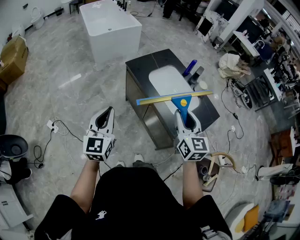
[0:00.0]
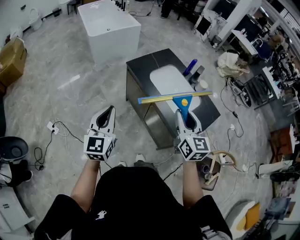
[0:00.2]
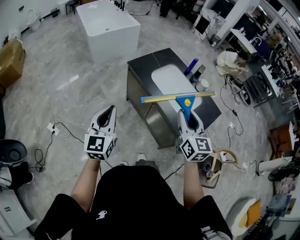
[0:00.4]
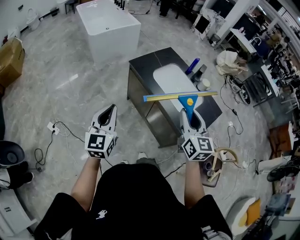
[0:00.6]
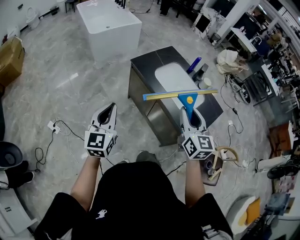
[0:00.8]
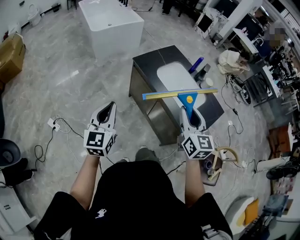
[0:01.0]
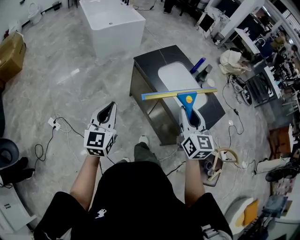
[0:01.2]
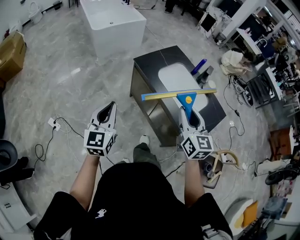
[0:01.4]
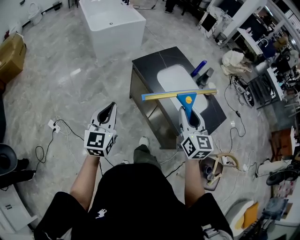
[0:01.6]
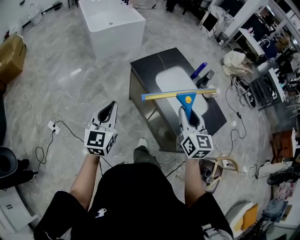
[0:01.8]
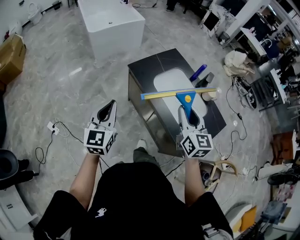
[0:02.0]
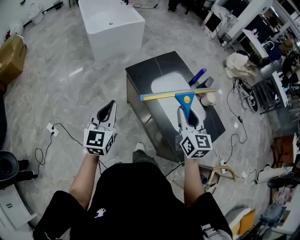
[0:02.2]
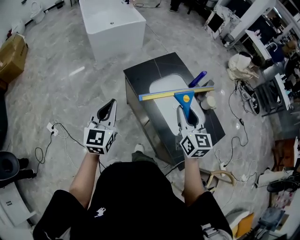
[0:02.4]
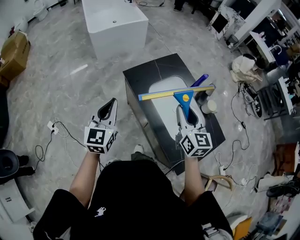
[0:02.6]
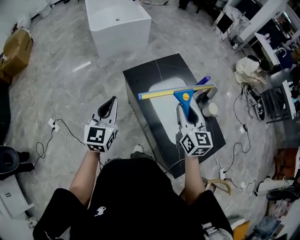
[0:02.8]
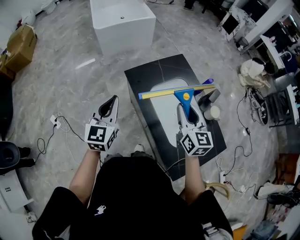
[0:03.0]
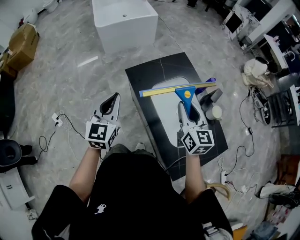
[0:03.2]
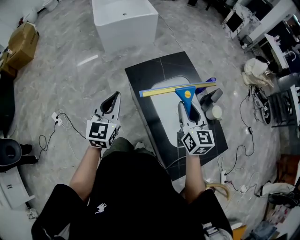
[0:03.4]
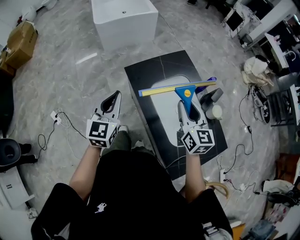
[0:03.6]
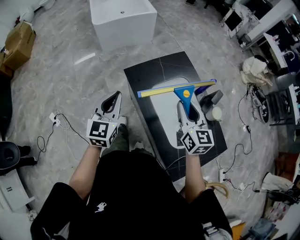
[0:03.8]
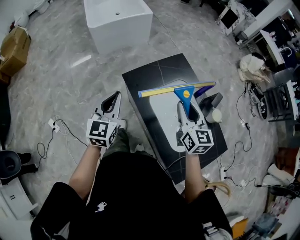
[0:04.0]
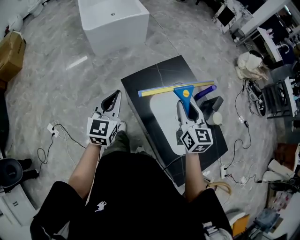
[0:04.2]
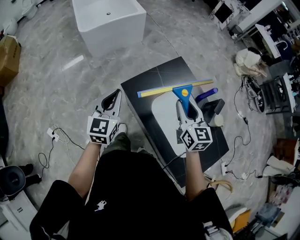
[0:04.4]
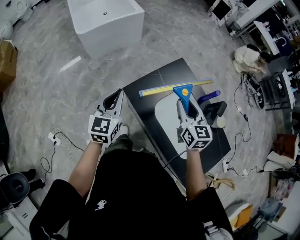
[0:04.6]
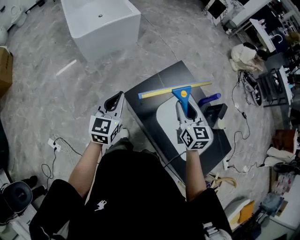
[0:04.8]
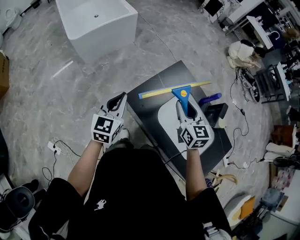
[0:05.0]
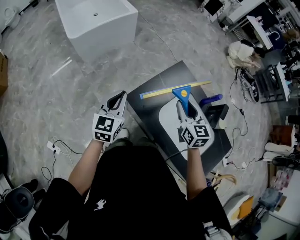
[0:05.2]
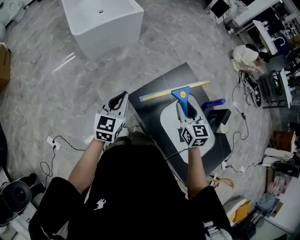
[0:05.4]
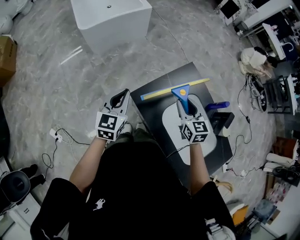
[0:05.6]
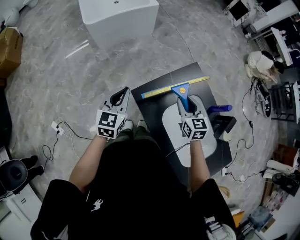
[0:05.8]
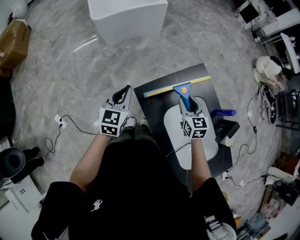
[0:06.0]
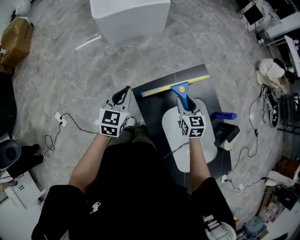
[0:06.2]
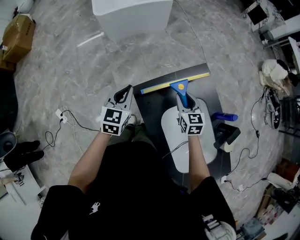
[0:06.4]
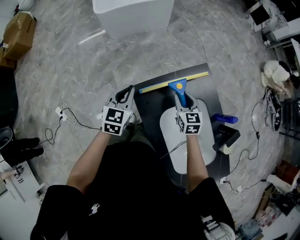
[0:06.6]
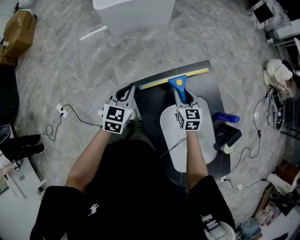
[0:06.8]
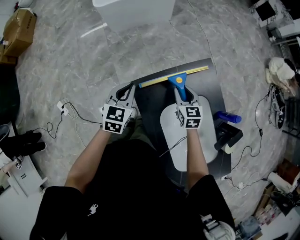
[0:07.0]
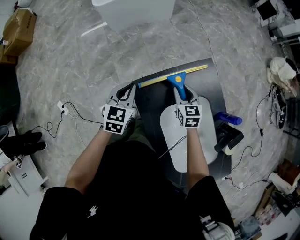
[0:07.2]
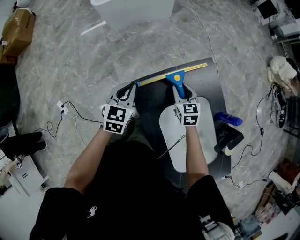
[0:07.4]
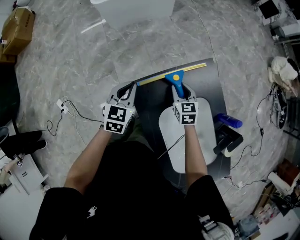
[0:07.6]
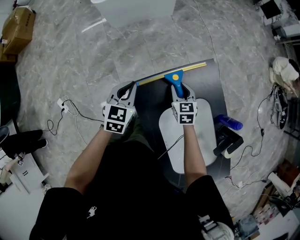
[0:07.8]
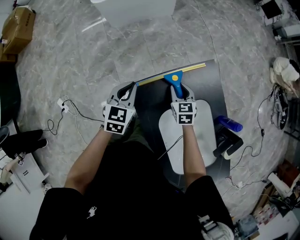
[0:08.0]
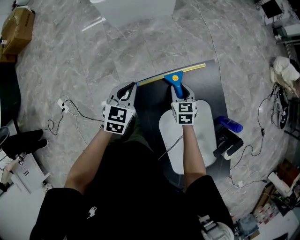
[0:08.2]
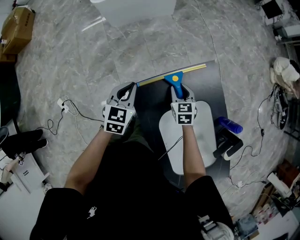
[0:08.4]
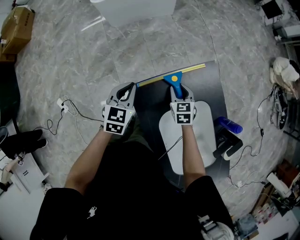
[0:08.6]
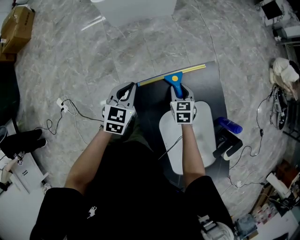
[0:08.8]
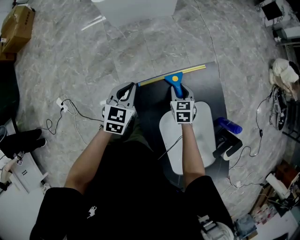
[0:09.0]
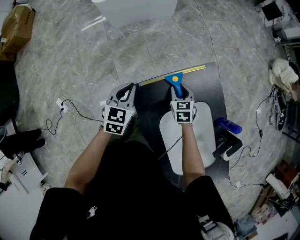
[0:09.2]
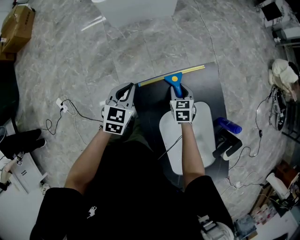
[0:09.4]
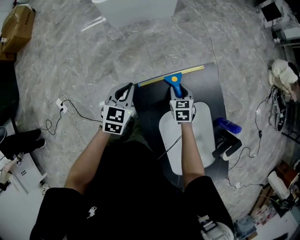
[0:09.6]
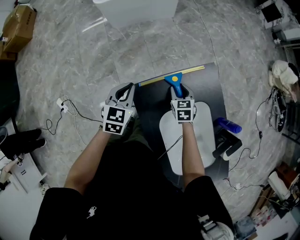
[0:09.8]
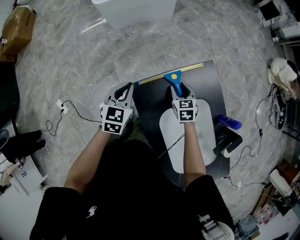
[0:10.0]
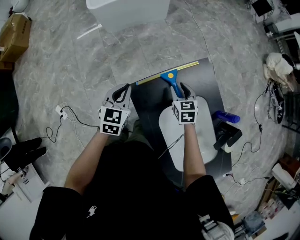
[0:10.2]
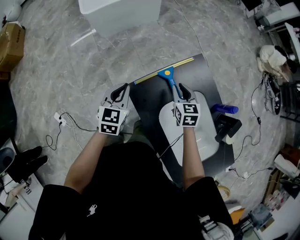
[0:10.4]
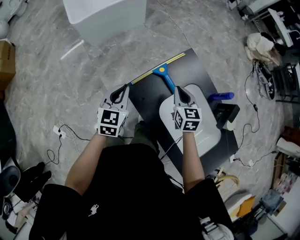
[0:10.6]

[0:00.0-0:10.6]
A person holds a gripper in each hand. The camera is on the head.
0:00.0 to 0:01.6: Both grippers move forward and to the left, about 10 cm.
0:01.6 to 0:03.0: Both grippers move forward and to the right, approximately 25 cm.
0:03.0 to 0:04.6: The grippers both shift forward by about 20 cm.
0:04.6 to 0:06.0: The left gripper heads downward and forward, covering approximately 10 cm; the right gripper moves downward and forward, about 15 cm.
0:06.0 to 0:07.6: The left gripper heads downward and to the right, covering approximately 10 cm, while the right gripper heads downward and forward, covering about 15 cm.
0:07.6 to 0:09.0: The grippers stay close to where they were, moving slightly.
0:09.0 to 0:10.6: The left gripper is displaced upward by about 5 cm; the right gripper is displaced upward and backward by roughly 15 cm, turns by about 20 degrees, and closes its fingers.

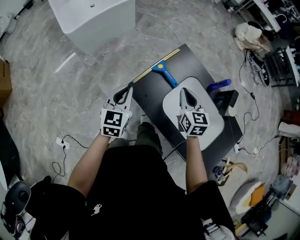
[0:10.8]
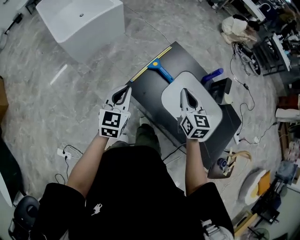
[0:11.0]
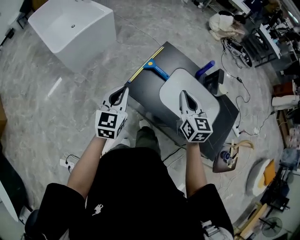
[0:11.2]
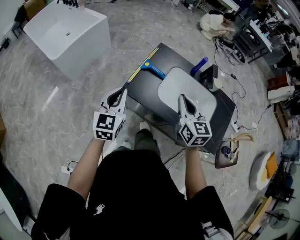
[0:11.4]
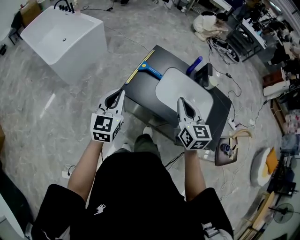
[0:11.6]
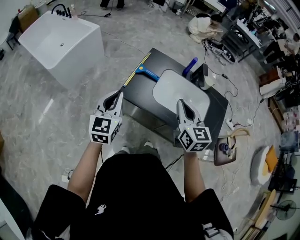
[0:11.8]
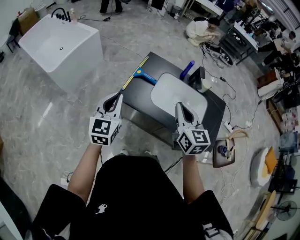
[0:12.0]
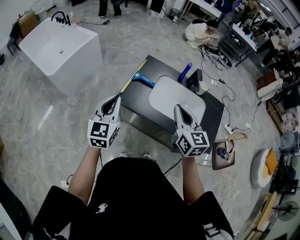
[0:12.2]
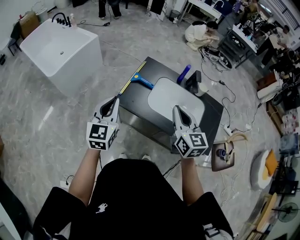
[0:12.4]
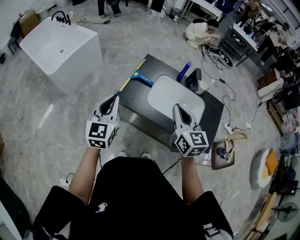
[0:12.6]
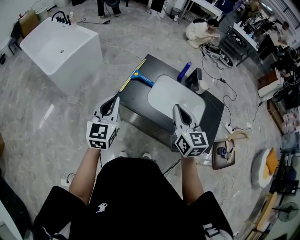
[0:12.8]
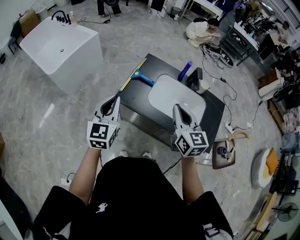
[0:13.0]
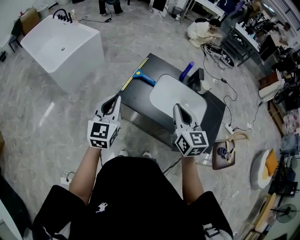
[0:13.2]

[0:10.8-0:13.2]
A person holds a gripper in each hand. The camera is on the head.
0:10.8 to 0:12.0: The left gripper shifts some 15 cm upward and backward, and swivels approximately 20 degrees, while the right gripper heads backward and upward, covering about 25 cm, and turns by approximately 20 degrees.
0:12.0 to 0:13.2: The grippers move only a little.

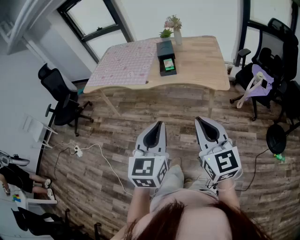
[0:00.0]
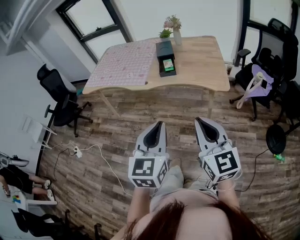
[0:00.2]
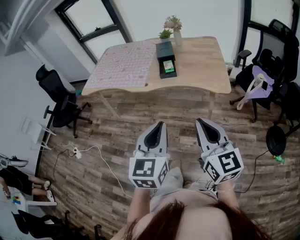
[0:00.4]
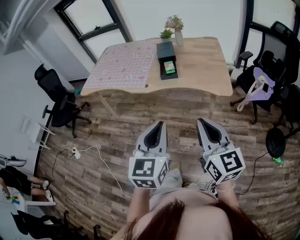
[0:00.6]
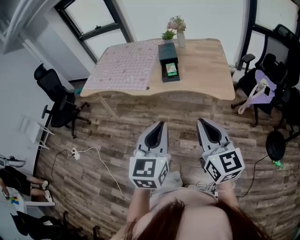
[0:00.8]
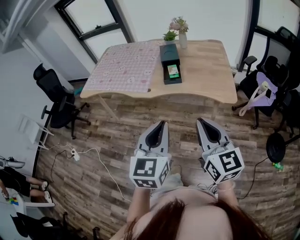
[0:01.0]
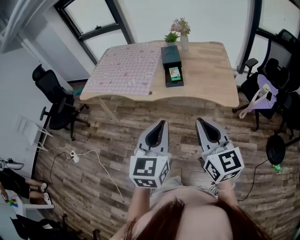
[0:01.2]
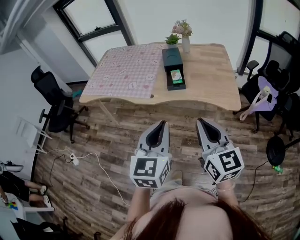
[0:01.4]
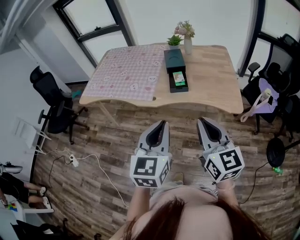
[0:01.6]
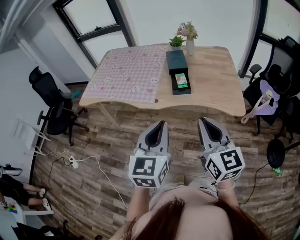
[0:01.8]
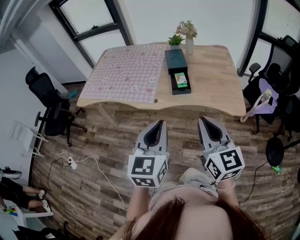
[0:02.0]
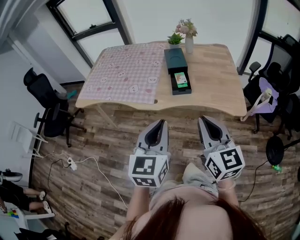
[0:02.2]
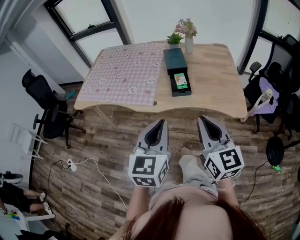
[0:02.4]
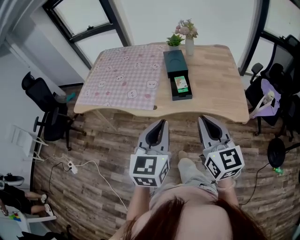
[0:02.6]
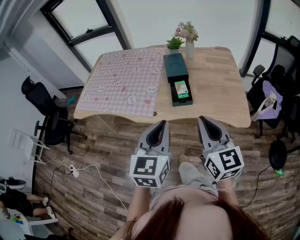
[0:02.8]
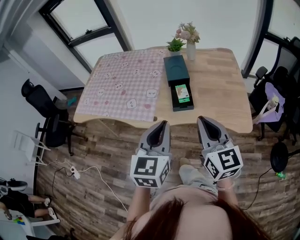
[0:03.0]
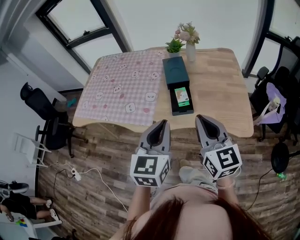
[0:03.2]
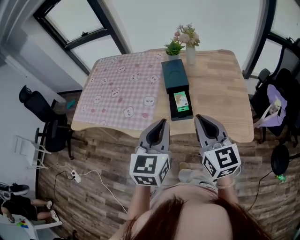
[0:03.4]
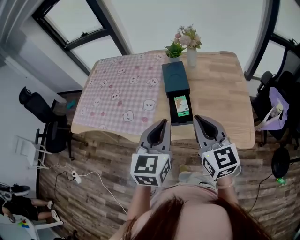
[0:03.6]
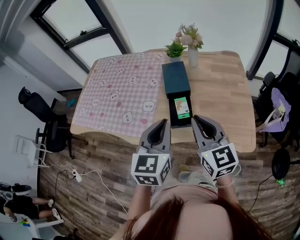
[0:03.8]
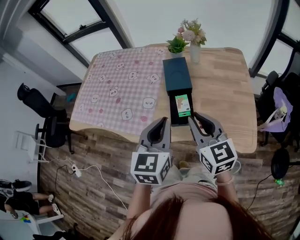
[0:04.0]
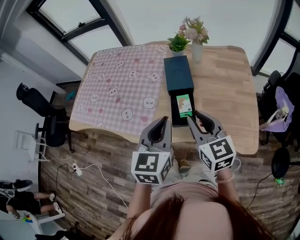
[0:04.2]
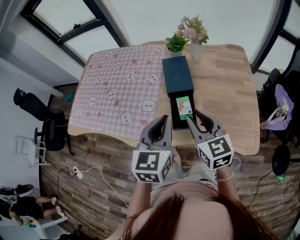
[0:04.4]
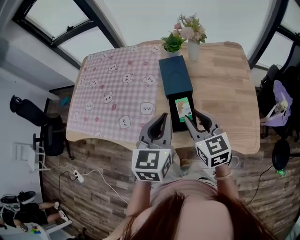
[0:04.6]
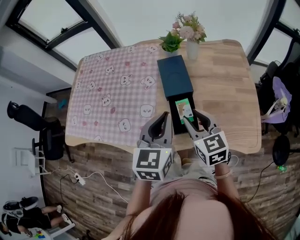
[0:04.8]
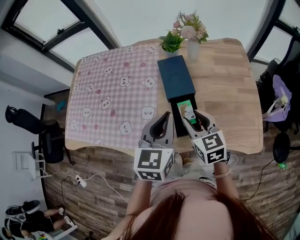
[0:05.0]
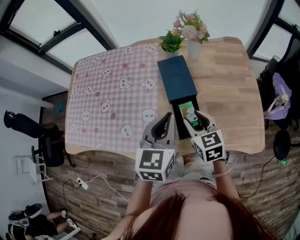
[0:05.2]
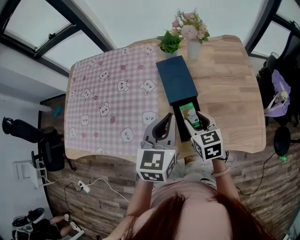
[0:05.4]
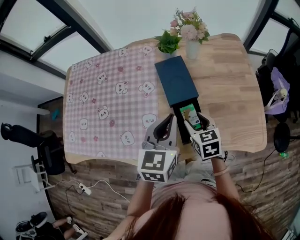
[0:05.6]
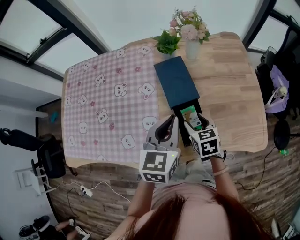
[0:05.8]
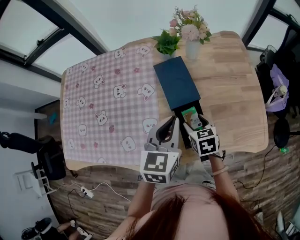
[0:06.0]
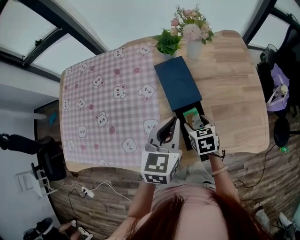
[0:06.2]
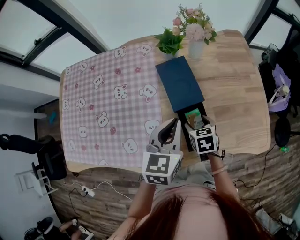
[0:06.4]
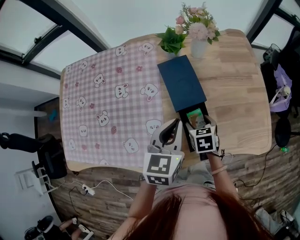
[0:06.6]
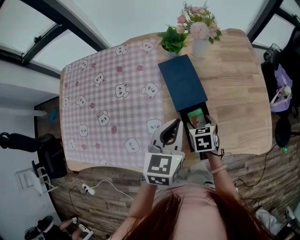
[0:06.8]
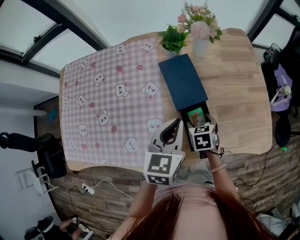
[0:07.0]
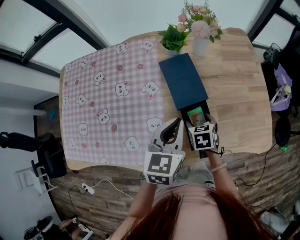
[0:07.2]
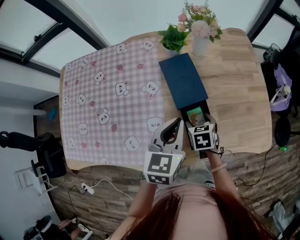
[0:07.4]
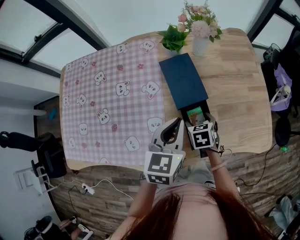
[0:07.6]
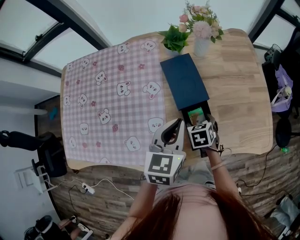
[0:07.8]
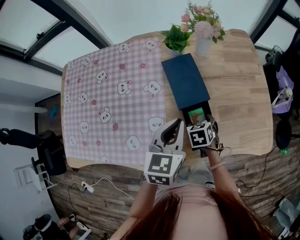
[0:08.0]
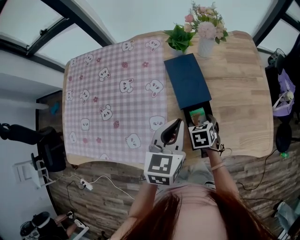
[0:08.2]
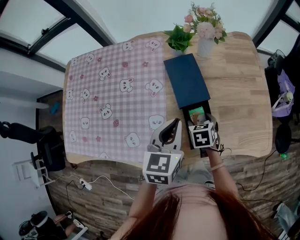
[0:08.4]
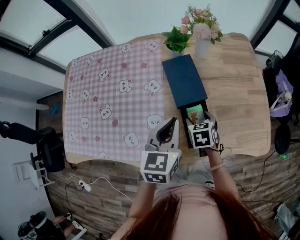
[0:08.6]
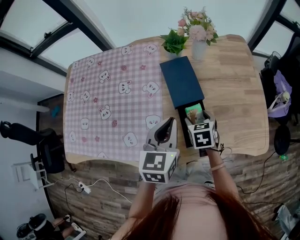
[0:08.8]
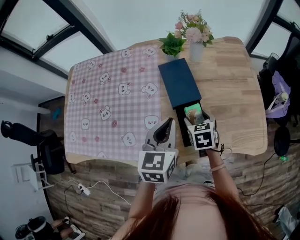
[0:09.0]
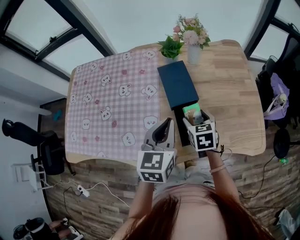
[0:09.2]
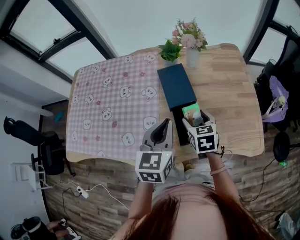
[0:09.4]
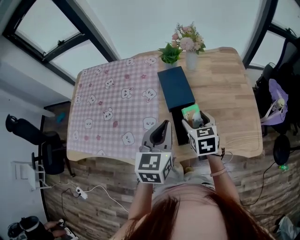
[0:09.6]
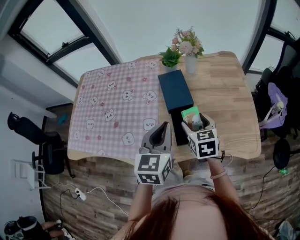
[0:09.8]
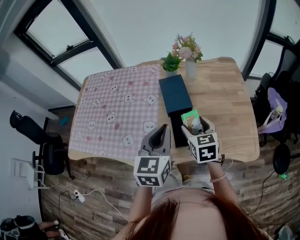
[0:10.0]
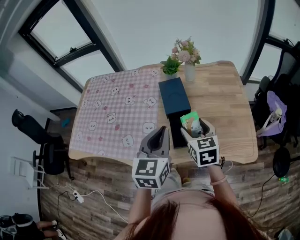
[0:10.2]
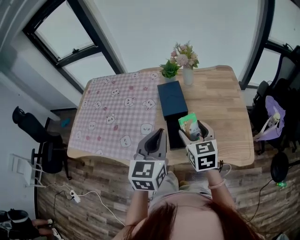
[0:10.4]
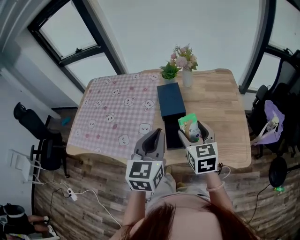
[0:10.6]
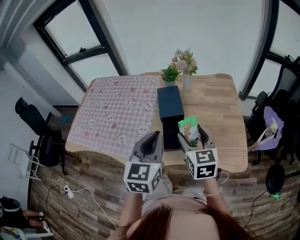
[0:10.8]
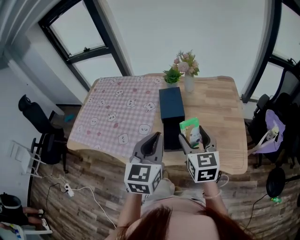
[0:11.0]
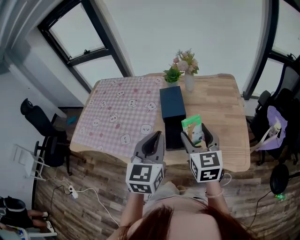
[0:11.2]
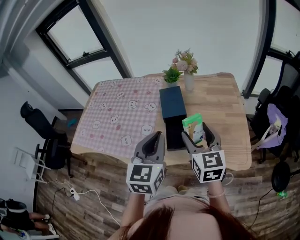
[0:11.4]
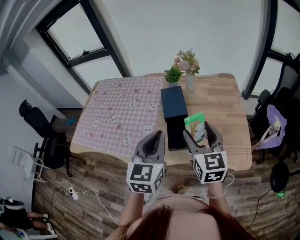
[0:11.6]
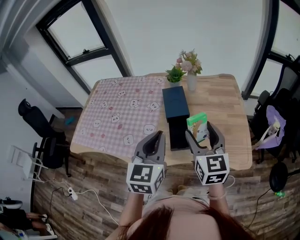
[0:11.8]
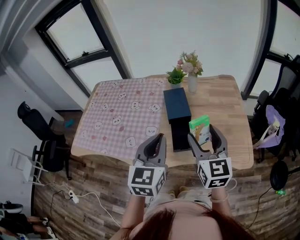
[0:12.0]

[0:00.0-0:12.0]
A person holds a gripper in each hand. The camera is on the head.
0:00.0 to 0:01.6: The two grippers go approximately 20 cm forward.
0:01.6 to 0:03.0: The grippers both shift forward by some 20 cm.
0:03.0 to 0:04.4: Both grippers move forward, some 20 cm.
0:04.4 to 0:06.0: The right gripper moves downward and forward, roughly 25 cm, tilts its fingers roughly 30 degrees downward, and opens; the left gripper is displaced forward and downward by some 15 cm.
0:06.0 to 0:07.6: The right gripper heads downward, covering some 5 cm.
0:07.6 to 0:09.0: The right gripper goes approximately 5 cm upward.
0:09.0 to 0:10.4: The right gripper moves upward and backward, approximately 20 cm, and rotates roughly 30 degrees. Meanwhile the left gripper moves backward and upward, roughly 15 cm.
0:10.4 to 0:12.0: The right gripper shifts roughly 15 cm upward and backward; the left gripper shifts by approximately 5 cm.
